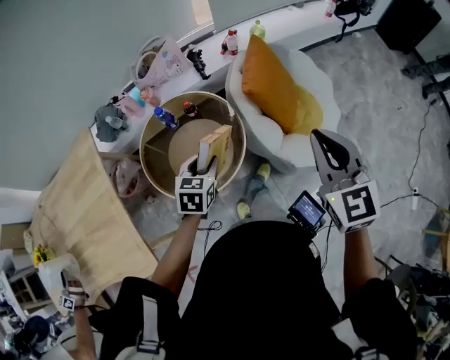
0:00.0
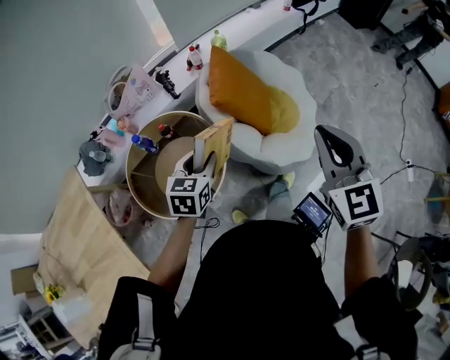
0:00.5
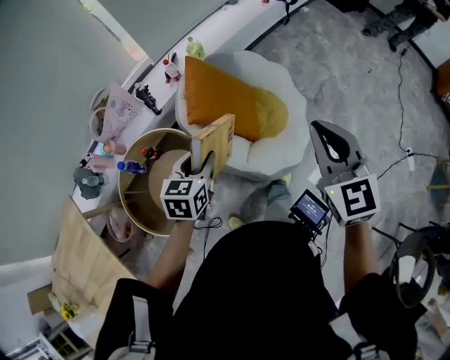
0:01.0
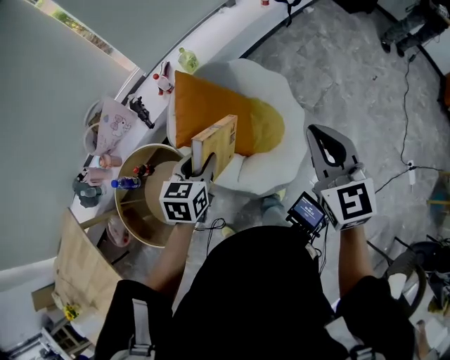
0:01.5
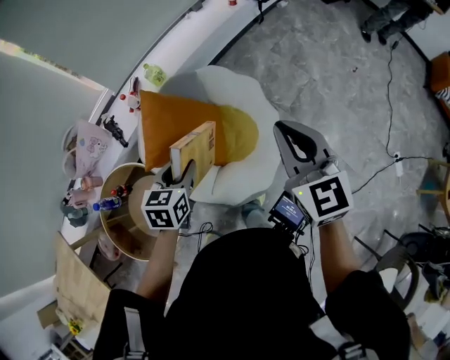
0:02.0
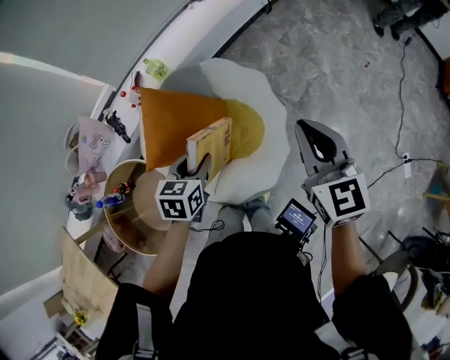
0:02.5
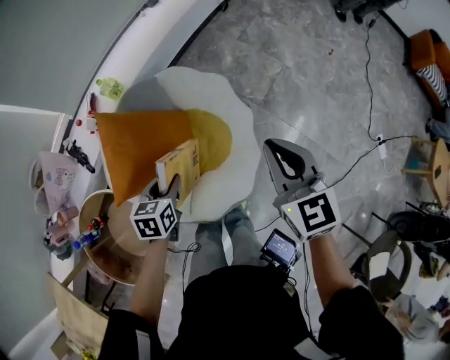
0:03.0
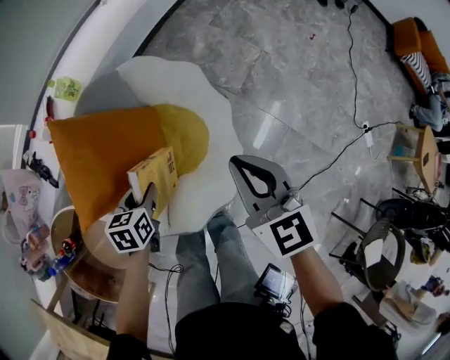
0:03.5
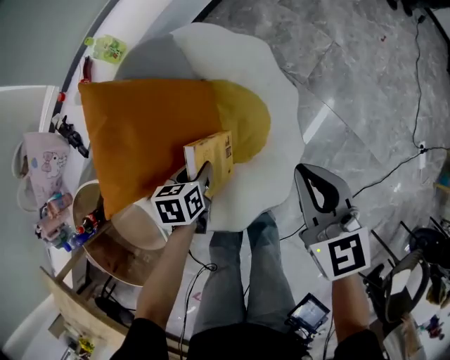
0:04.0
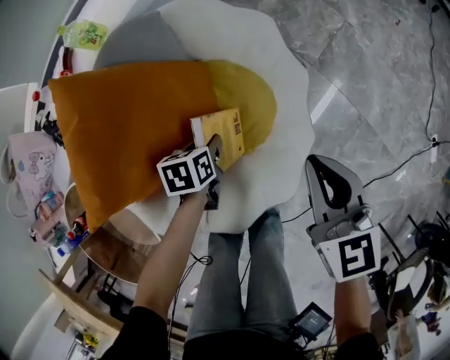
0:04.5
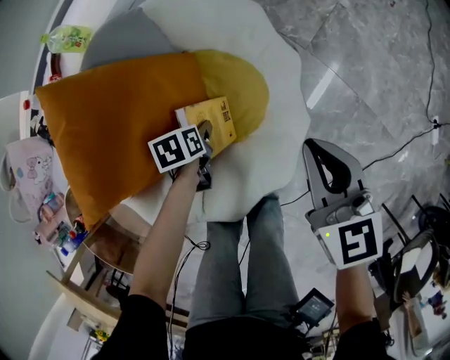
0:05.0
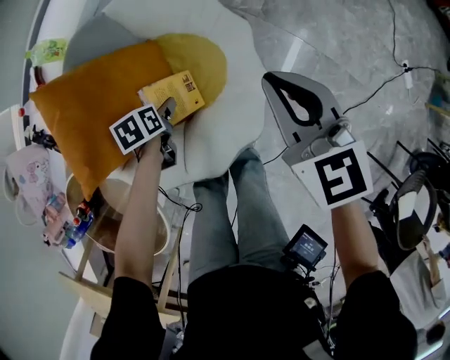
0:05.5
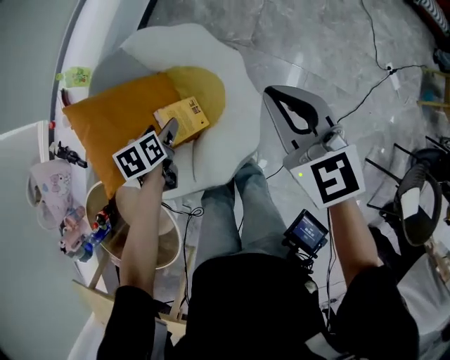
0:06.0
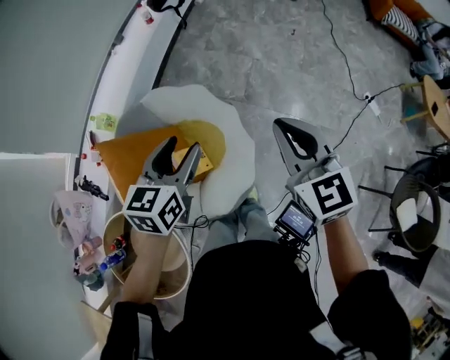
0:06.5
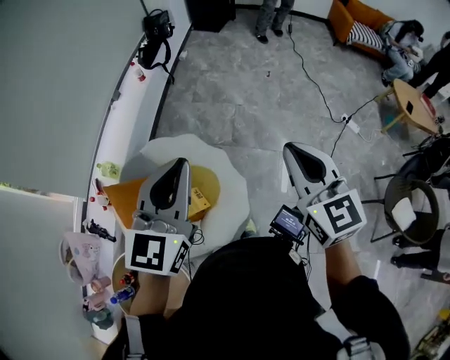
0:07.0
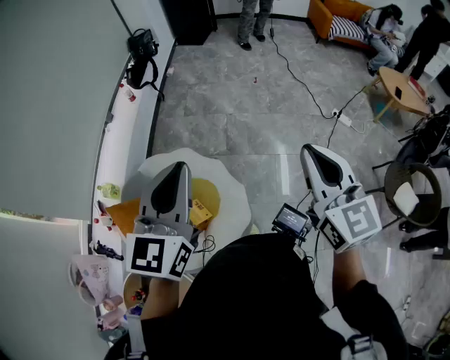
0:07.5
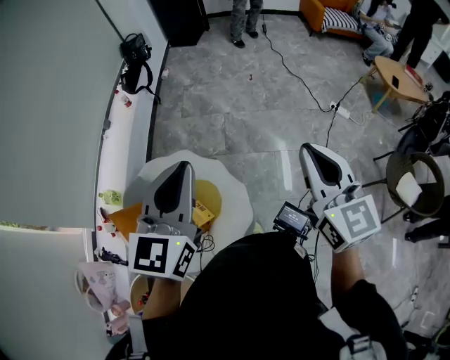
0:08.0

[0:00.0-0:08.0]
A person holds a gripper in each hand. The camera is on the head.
0:00.0 to 0:02.0: The two grippers travel together, to the right and forward, approximately 40 cm.
0:02.0 to 0:04.0: The two grippers go approximately 35 cm downward. The left gripper swivels some 30 degrees.
0:04.0 to 0:06.0: The right gripper goes some 15 cm upward and to the right. The left gripper is displaced upward by approximately 10 cm, and opens.
0:06.0 to 0:08.0: The left gripper is displaced upward and to the right by some 60 cm, angles its fingers upward, by approximately 50 degrees, and closes up, while the right gripper is displaced upward, to the right and backward by some 40 cm, and changes its angle by some 40 degrees.

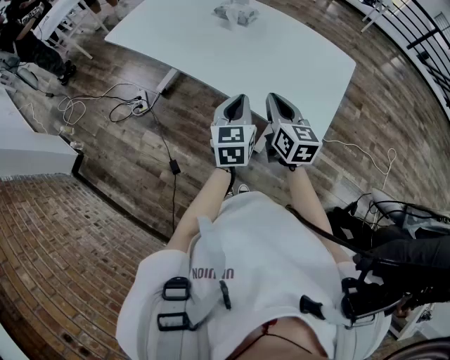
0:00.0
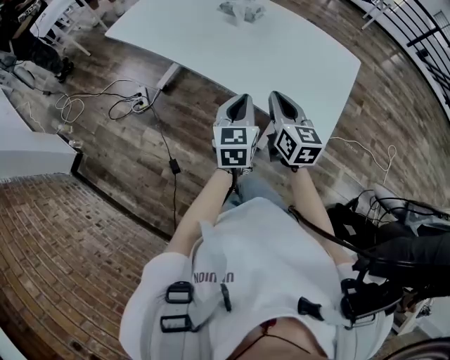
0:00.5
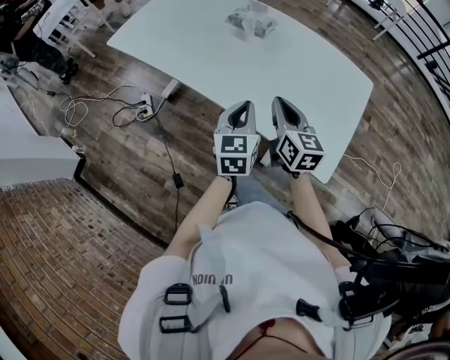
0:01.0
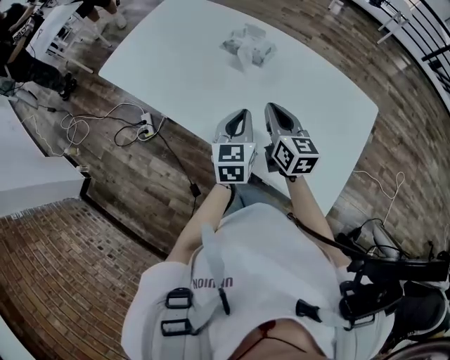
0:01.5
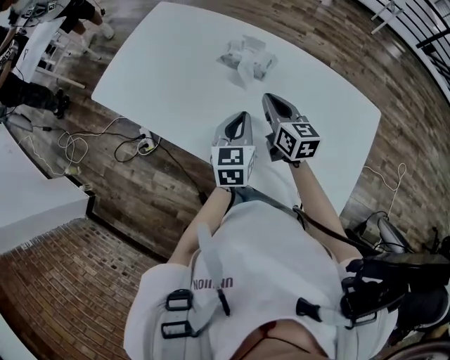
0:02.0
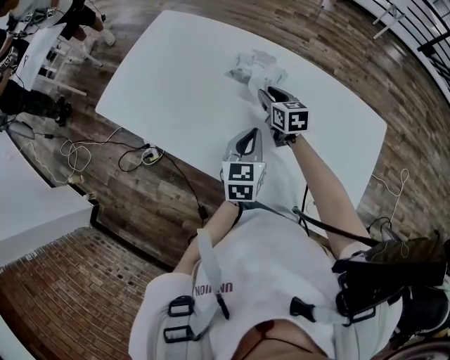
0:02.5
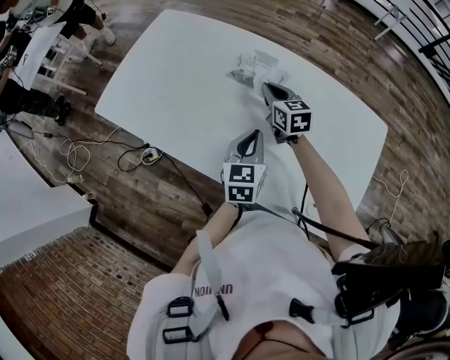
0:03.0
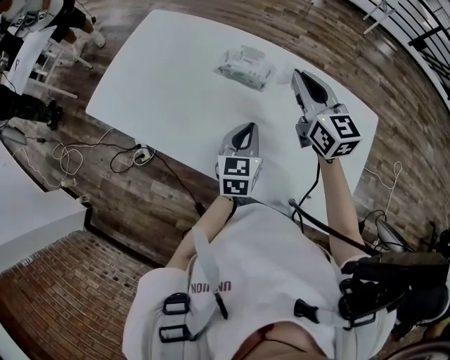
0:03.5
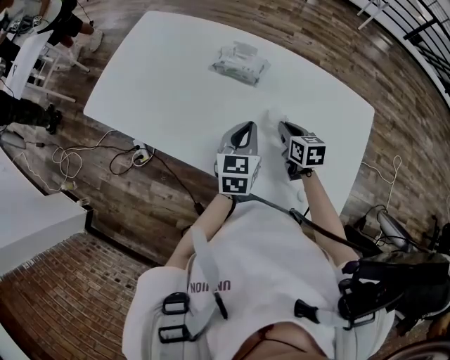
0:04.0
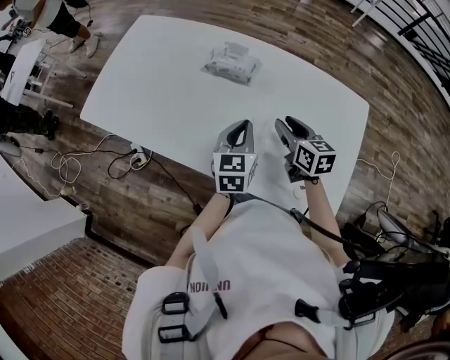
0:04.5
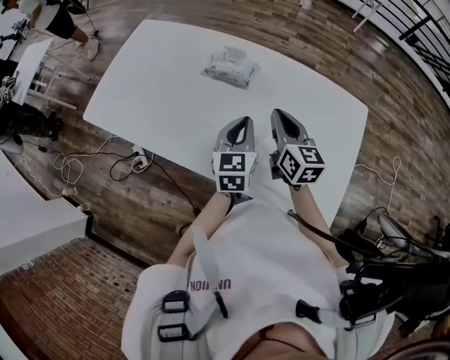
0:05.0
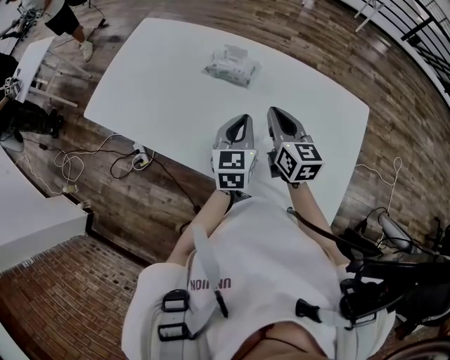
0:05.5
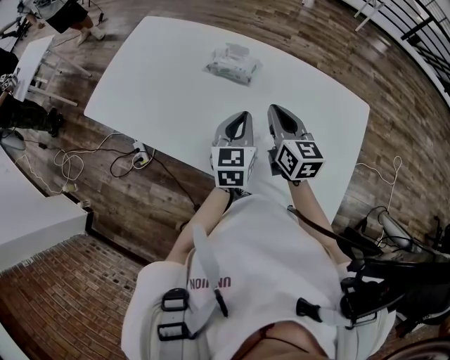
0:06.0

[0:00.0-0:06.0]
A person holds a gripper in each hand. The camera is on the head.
0:00.0 to 0:02.0: The two grippers go roughly 30 cm forward.
0:02.0 to 0:04.0: The right gripper swings up and down, approximately 25 cm each way, with 2 reversals, rotates approximately 20 degrees, and opens, then closes again.
0:04.0 to 0:06.0: The right gripper shifts some 15 cm upward, changes its angle by some 30 degrees, and opens, then closes once more.

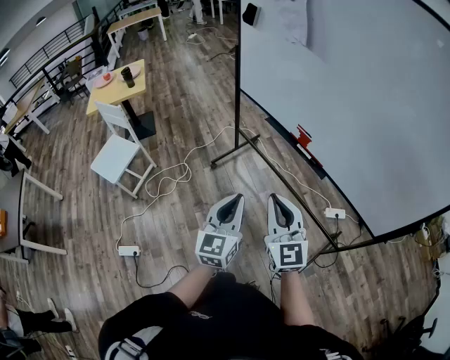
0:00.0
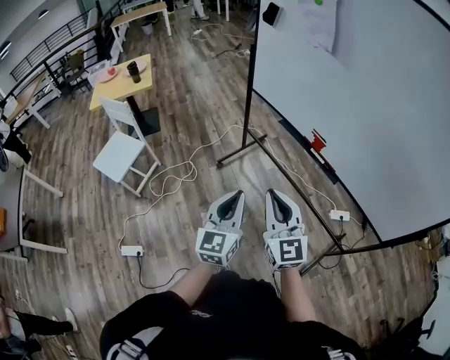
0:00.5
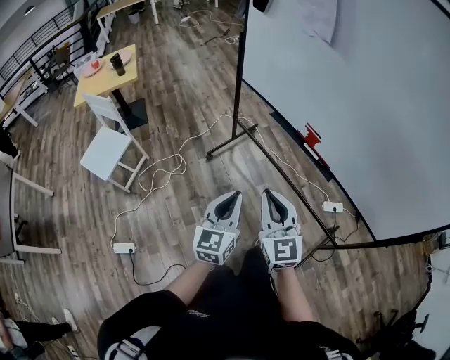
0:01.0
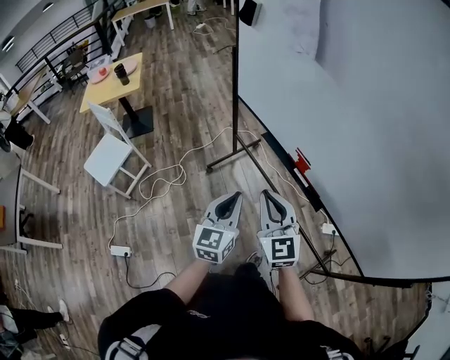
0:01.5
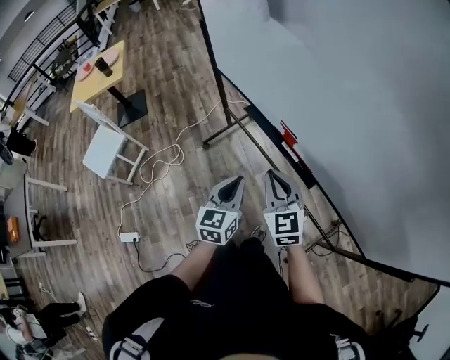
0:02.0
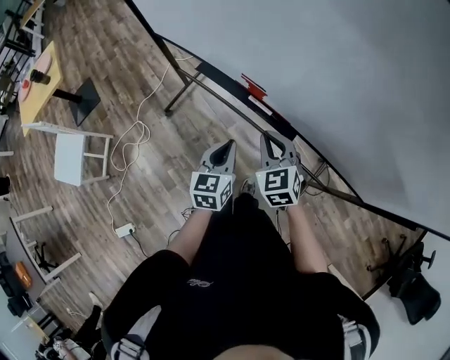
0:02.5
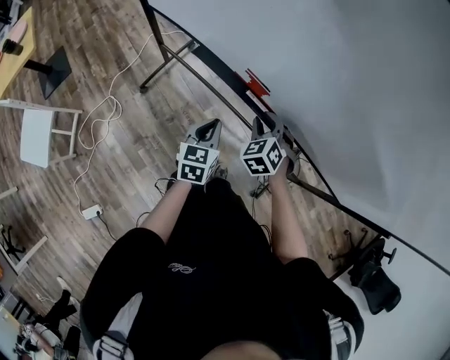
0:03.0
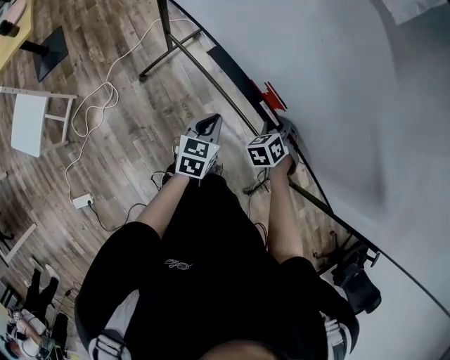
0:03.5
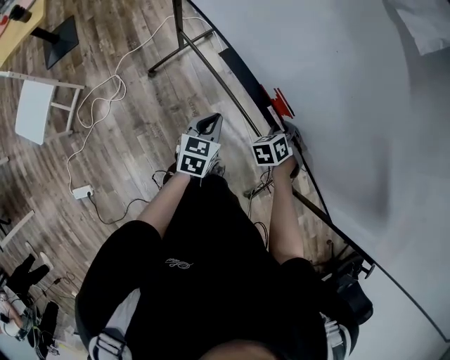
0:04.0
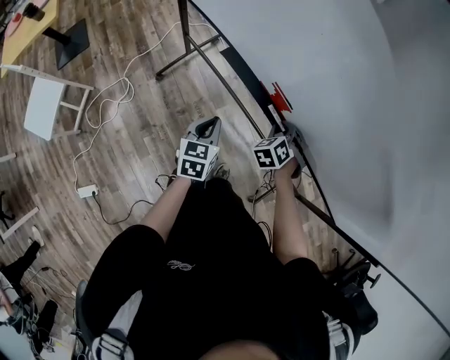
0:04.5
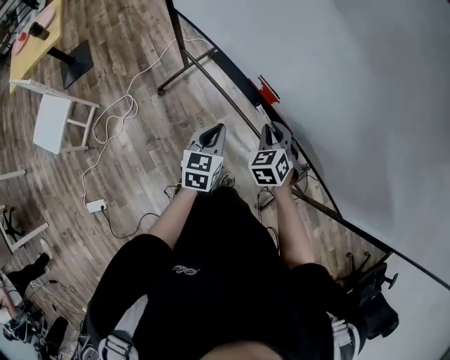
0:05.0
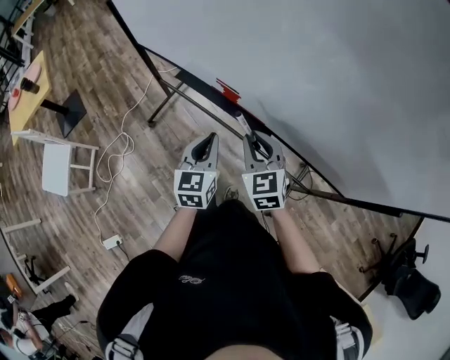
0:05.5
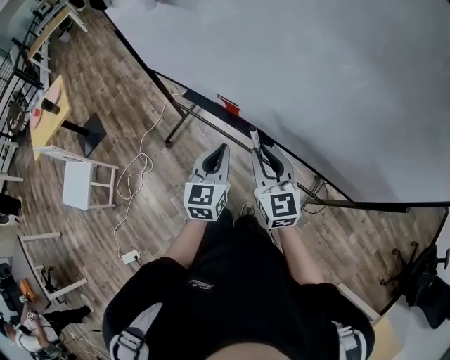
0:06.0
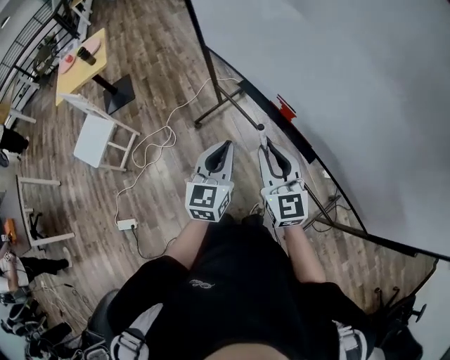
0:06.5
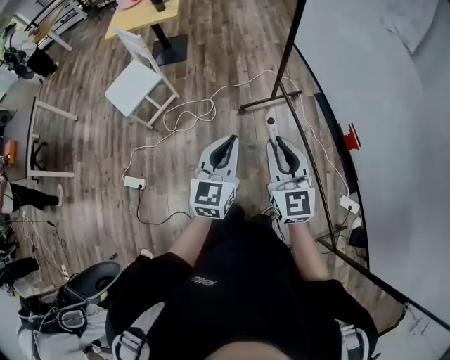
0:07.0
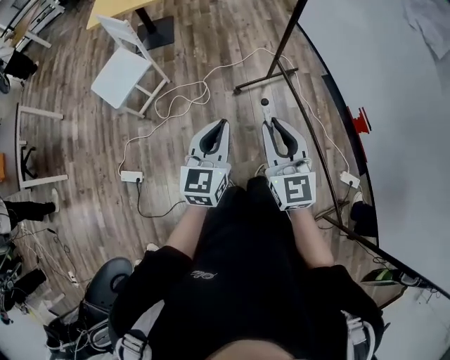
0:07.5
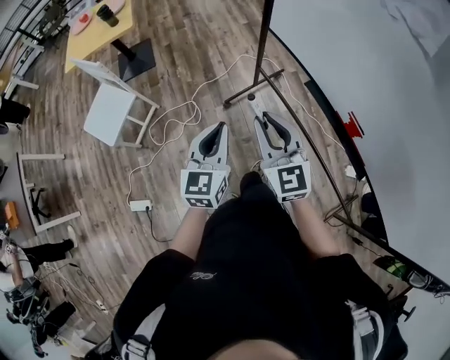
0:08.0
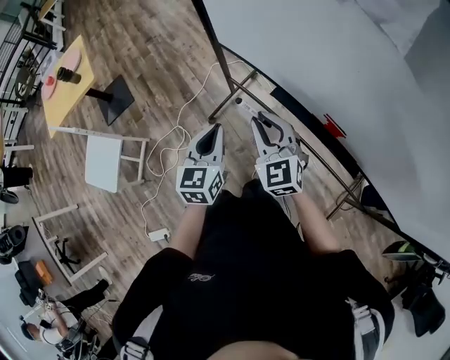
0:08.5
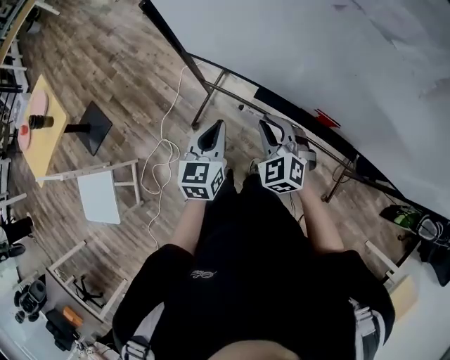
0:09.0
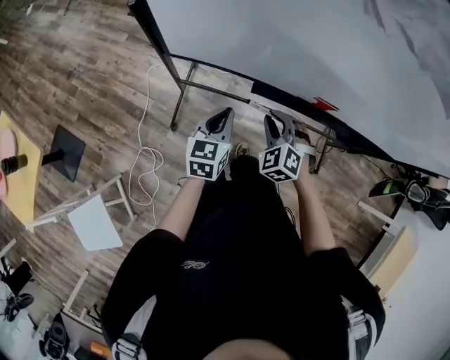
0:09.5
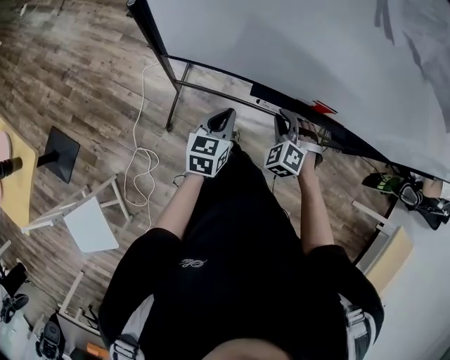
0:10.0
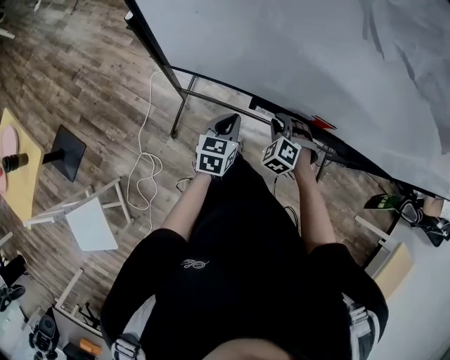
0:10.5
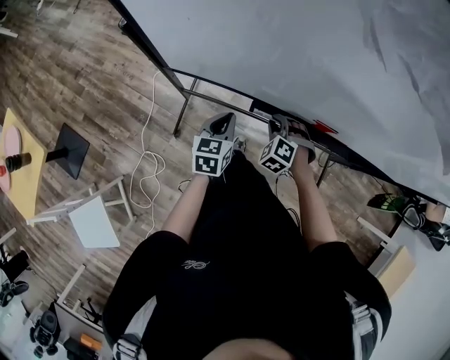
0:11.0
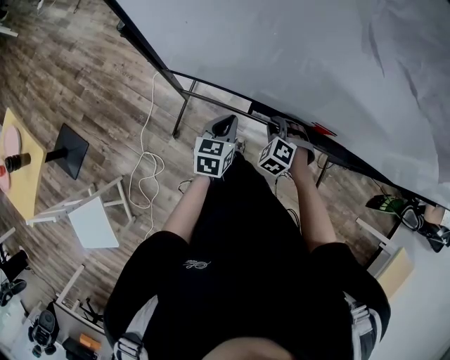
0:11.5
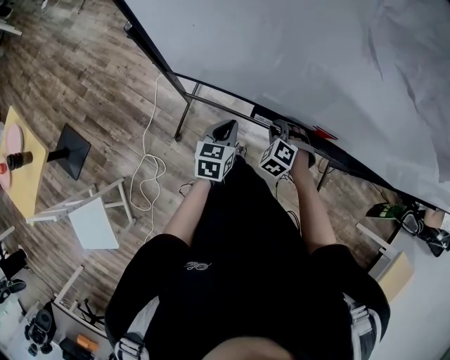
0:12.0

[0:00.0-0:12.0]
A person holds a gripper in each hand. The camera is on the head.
0:00.0 to 0:02.0: Both grippers move forward, to the right and downward, about 25 cm.
0:02.0 to 0:04.0: Both grippers move downward, approximately 20 cm. The right gripper tips its fingers downward by some 40 degrees, while the left gripper turns by some 20 degrees.
0:04.0 to 0:06.0: The right gripper travels upward and backward by approximately 30 cm, and tilts its fingers about 50 degrees upward; the left gripper is displaced upward, to the right and backward by roughly 30 cm, and rotates some 30 degrees.
0:06.0 to 0:08.0: The pair of grippers is taken approximately 40 cm. The right gripper turns by approximately 30 degrees; the left gripper swivels about 20 degrees.
0:08.0 to 0:10.0: The right gripper shifts by roughly 35 cm, and tilts its fingers approximately 40 degrees downward; the left gripper moves roughly 35 cm, and turns by some 60 degrees.
0:10.0 to 0:12.0: The right gripper travels downward by approximately 5 cm. Meanwhile the left gripper ends up some 5 cm from where it was.
